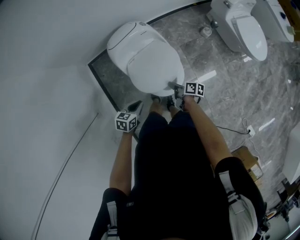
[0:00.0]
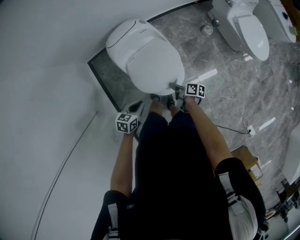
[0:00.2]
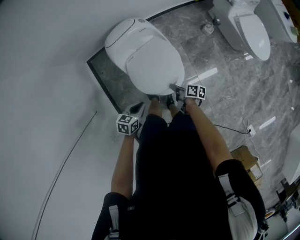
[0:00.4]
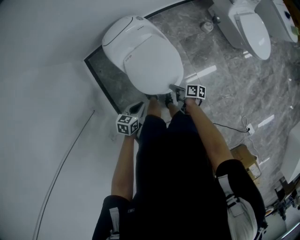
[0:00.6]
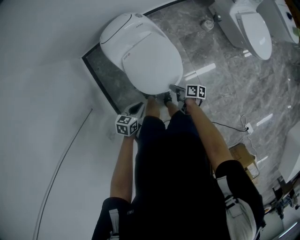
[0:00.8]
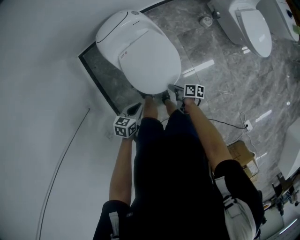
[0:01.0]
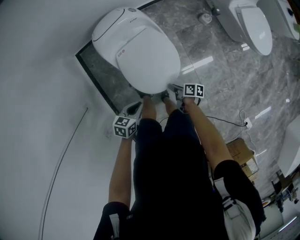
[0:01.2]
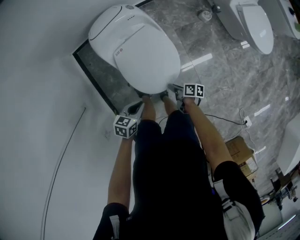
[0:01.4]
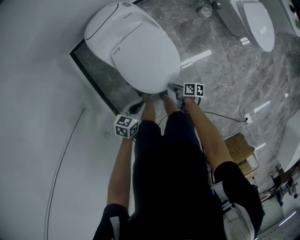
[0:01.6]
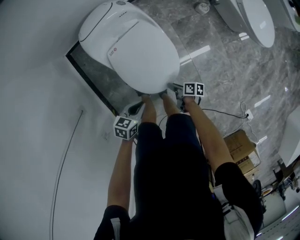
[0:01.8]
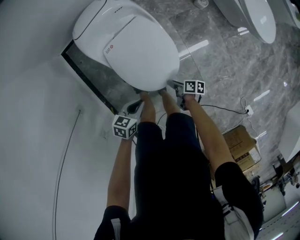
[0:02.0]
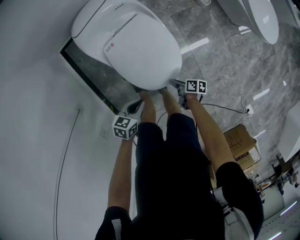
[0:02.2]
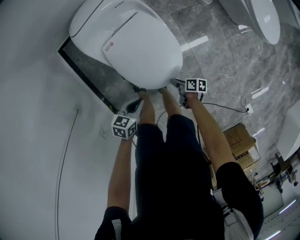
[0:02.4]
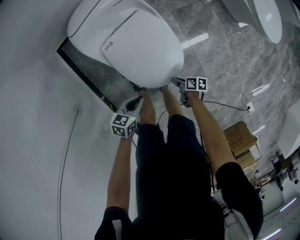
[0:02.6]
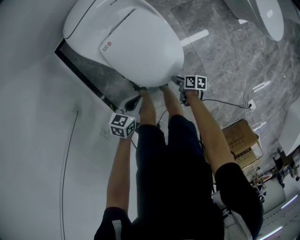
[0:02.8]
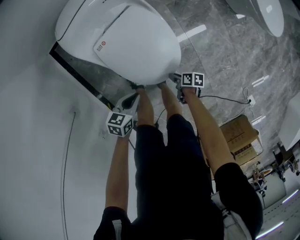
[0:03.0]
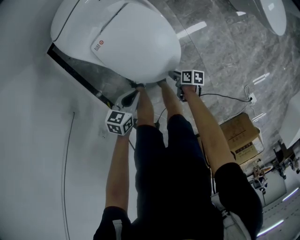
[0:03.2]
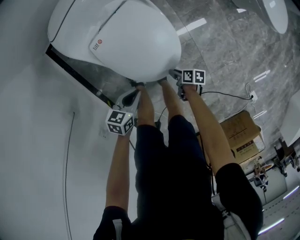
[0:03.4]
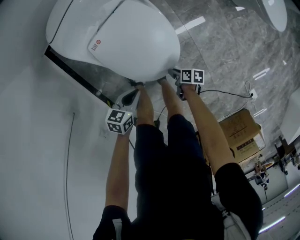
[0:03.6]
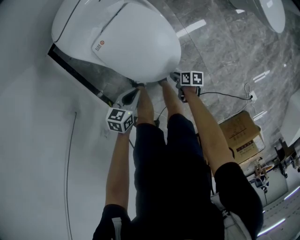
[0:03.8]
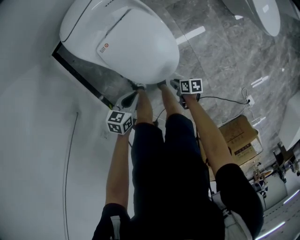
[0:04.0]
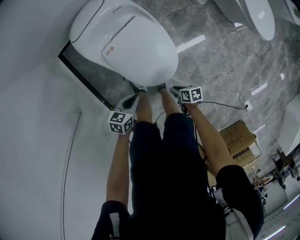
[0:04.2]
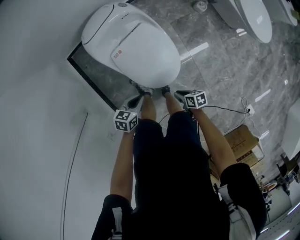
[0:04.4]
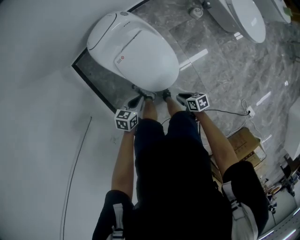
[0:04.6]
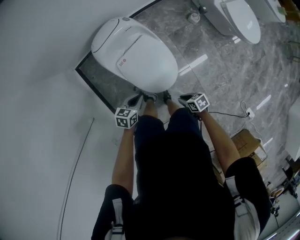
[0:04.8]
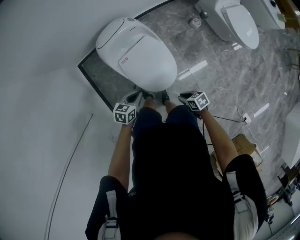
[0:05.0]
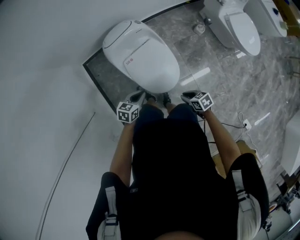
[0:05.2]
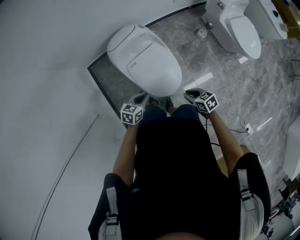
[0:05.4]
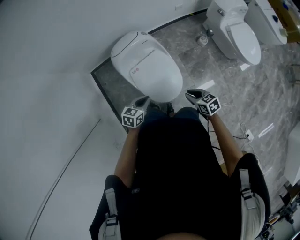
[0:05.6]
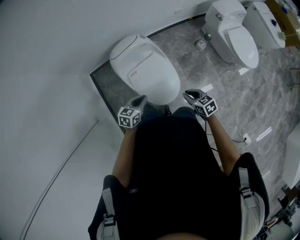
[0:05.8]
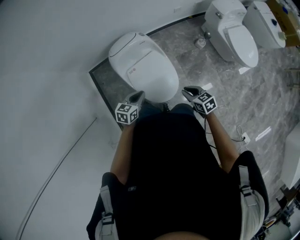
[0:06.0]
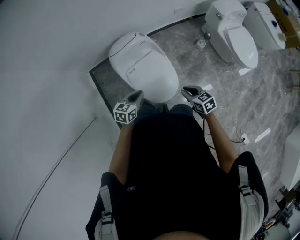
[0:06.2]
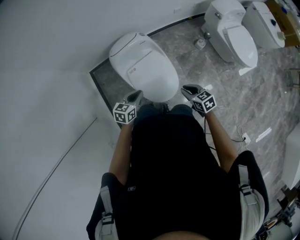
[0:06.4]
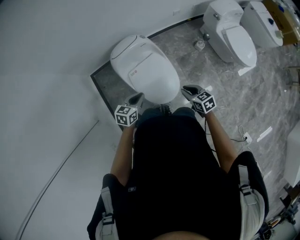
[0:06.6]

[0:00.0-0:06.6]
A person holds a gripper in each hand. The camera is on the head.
0:00.0 to 0:01.6: The left gripper heads downward, covering approximately 5 cm.
0:01.6 to 0:03.2: The left gripper shifts approximately 15 cm downward.
0:03.2 to 0:05.0: The left gripper moves upward, about 20 cm.
0:05.0 to 0:06.6: The left gripper is displaced upward by some 10 cm.

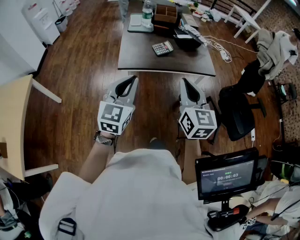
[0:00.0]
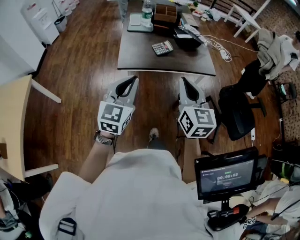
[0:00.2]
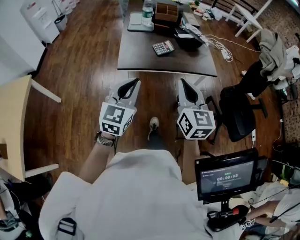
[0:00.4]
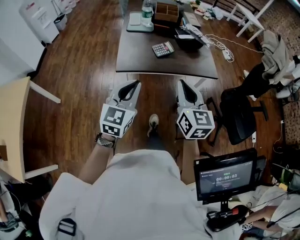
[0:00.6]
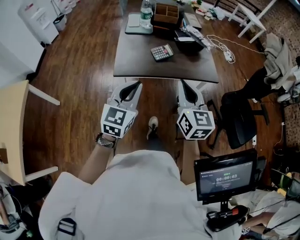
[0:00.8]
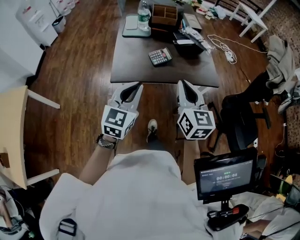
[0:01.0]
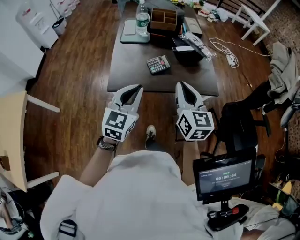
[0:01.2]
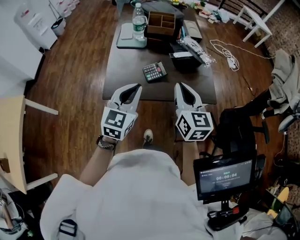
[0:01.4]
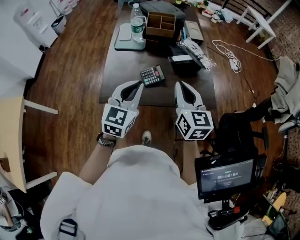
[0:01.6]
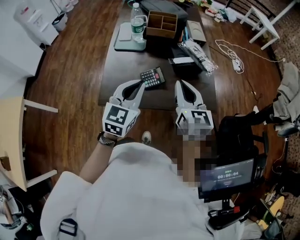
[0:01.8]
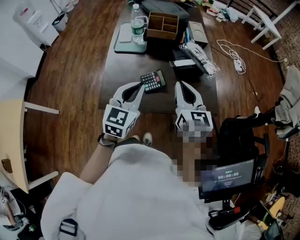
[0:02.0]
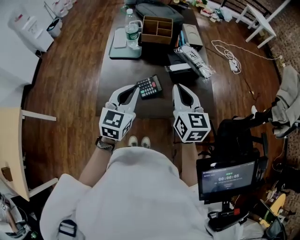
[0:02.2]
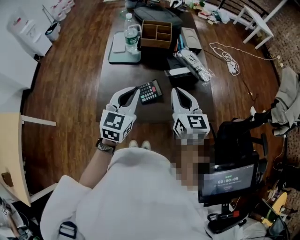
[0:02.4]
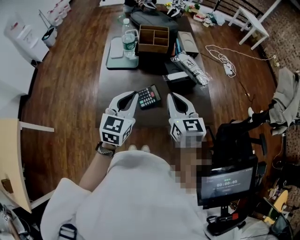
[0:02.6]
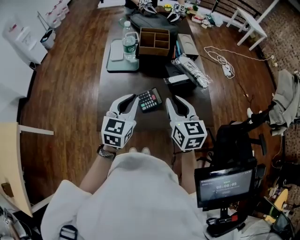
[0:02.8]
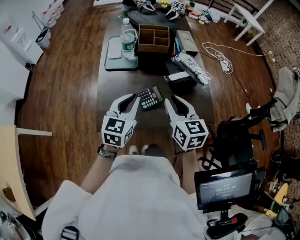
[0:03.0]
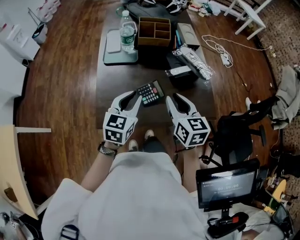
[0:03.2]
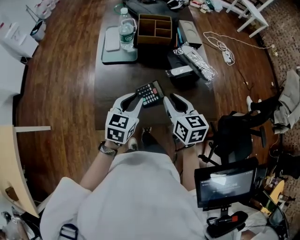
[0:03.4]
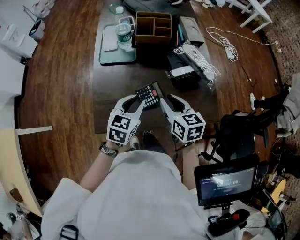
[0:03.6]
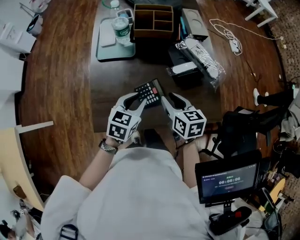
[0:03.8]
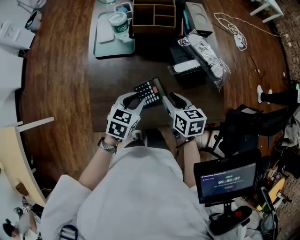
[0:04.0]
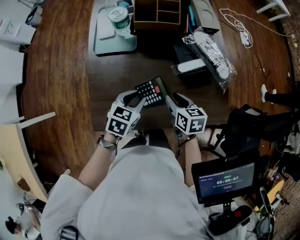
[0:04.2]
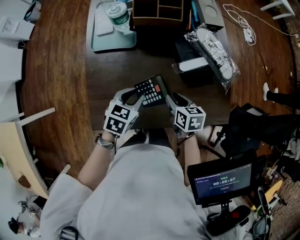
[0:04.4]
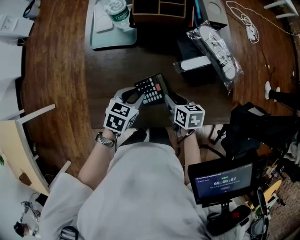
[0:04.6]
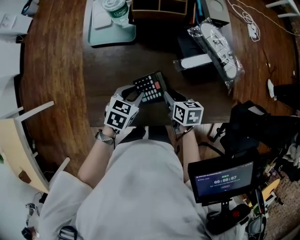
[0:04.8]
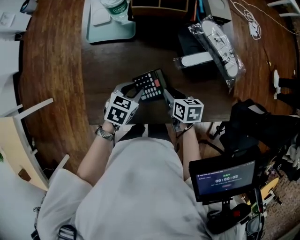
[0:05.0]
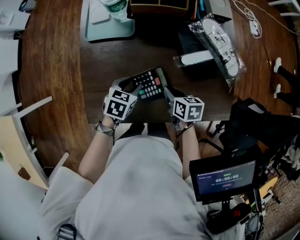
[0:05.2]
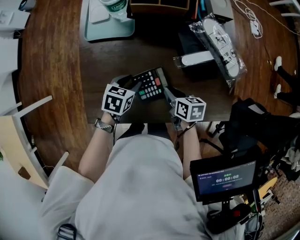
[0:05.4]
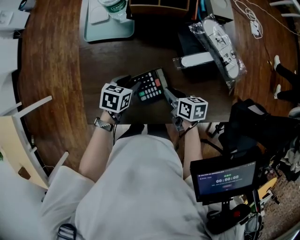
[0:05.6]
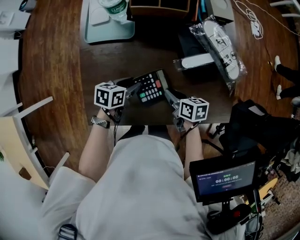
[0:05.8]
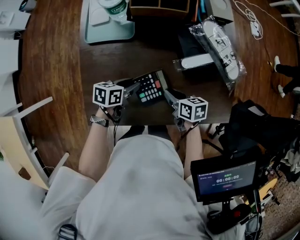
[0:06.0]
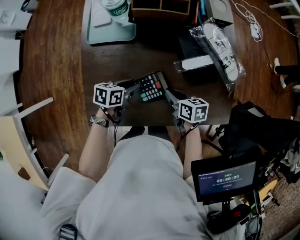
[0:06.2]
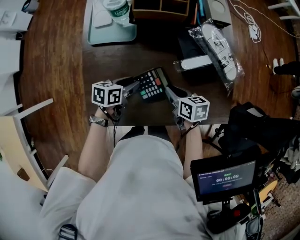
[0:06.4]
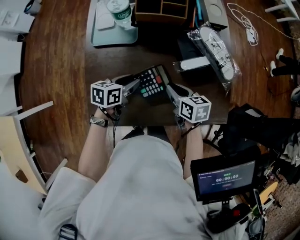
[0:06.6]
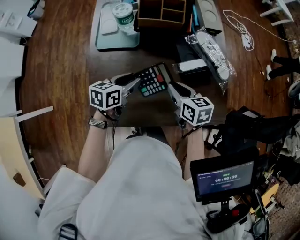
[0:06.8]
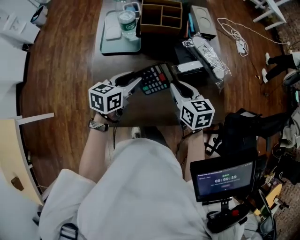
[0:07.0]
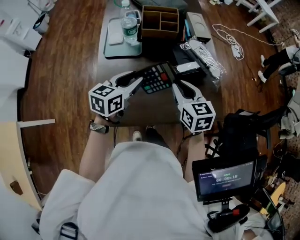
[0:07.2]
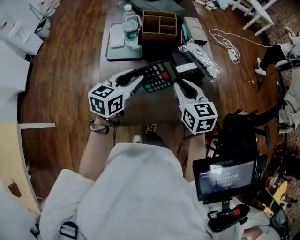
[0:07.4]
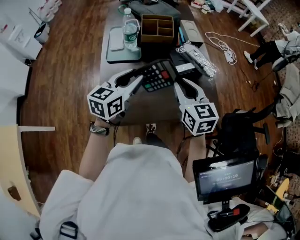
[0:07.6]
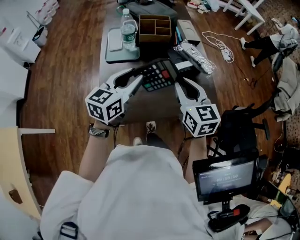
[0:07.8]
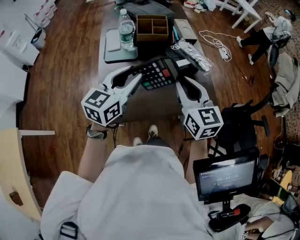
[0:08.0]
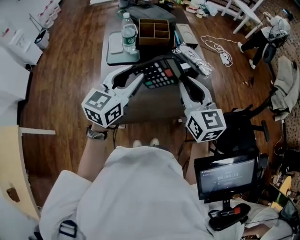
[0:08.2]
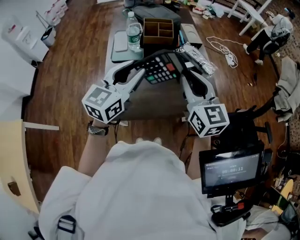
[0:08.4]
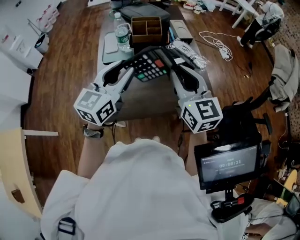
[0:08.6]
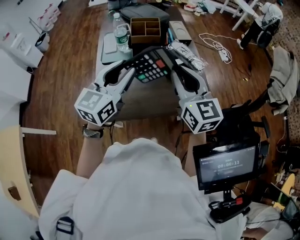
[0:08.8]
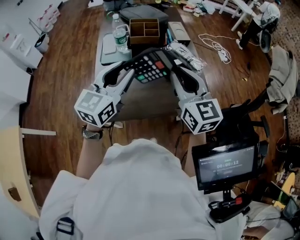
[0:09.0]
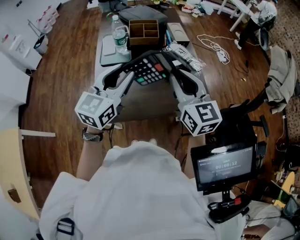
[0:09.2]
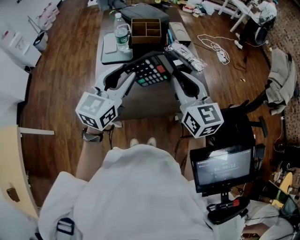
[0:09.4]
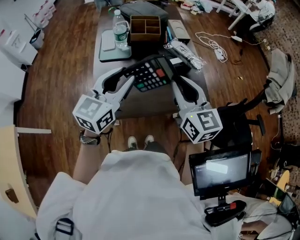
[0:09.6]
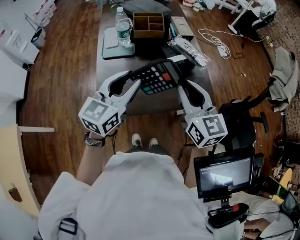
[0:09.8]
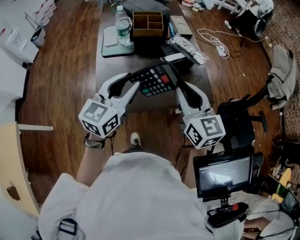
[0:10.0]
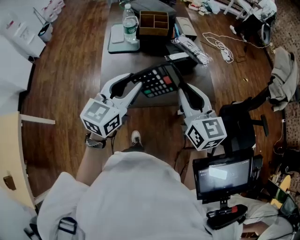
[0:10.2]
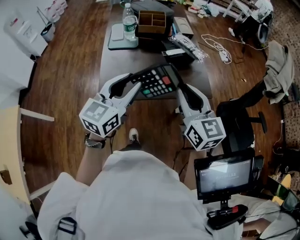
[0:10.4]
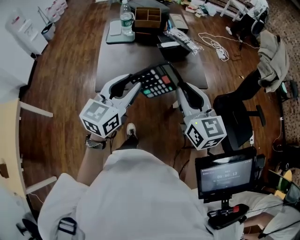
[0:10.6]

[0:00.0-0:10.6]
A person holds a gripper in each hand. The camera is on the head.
0:00.0 to 0:01.6: Both grippers travel together forward, roughly 30 cm.
0:01.6 to 0:03.0: Both grippers travel together forward, about 10 cm.
0:03.0 to 0:04.6: Both grippers move downward, some 25 cm. The left gripper points its fingers roughly 30 degrees further downward. The right gripper swivels about 40 degrees.
0:04.6 to 0:06.0: The left gripper shifts approximately 5 cm downward, and rotates some 30 degrees.
0:06.0 to 0:07.6: The grippers both shift upward by roughly 30 cm. The right gripper rotates approximately 50 degrees. Meanwhile the left gripper rotates roughly 50 degrees.
0:07.6 to 0:09.0: The right gripper moves upward, some 10 cm, while the left gripper goes approximately 10 cm upward and backward, and turns by about 20 degrees.
0:09.0 to 0:10.6: The two grippers go roughly 20 cm backward.

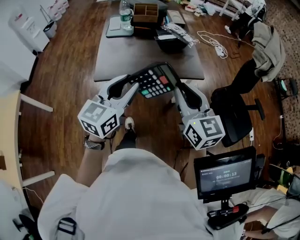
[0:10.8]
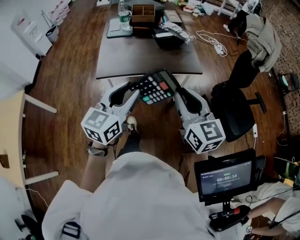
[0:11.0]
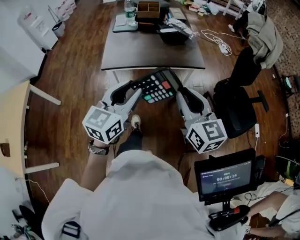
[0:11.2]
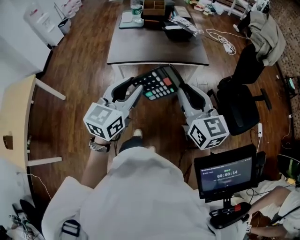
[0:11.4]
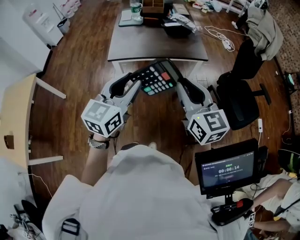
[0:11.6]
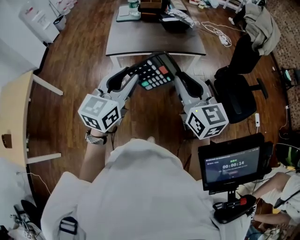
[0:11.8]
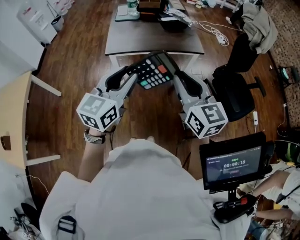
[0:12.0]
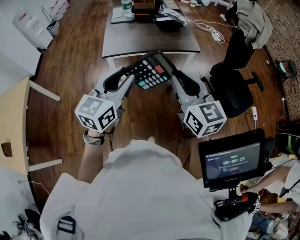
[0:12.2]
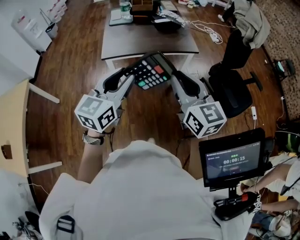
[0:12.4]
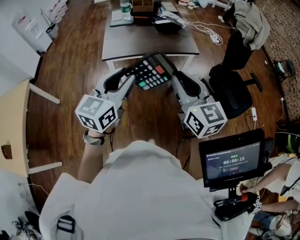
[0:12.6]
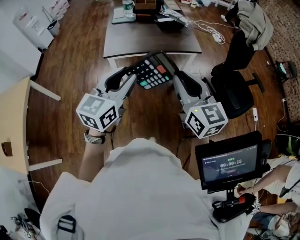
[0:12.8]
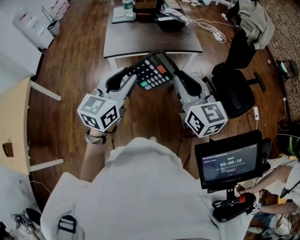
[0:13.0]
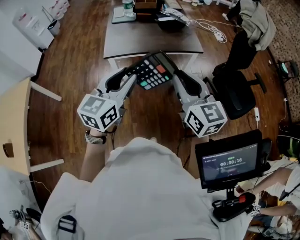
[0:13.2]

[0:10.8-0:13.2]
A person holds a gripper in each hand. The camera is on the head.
0:10.8 to 0:12.0: The two grippers go approximately 20 cm backward.
0:12.0 to 0:13.2: The grippers make only small movements.

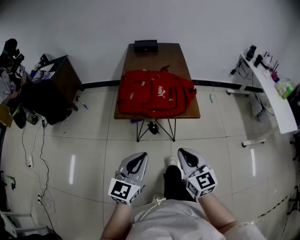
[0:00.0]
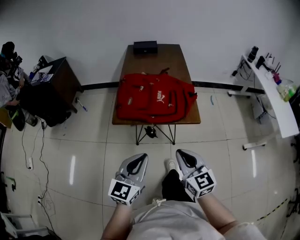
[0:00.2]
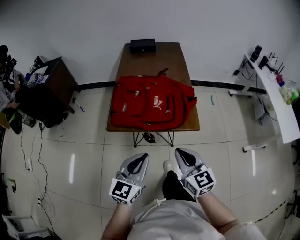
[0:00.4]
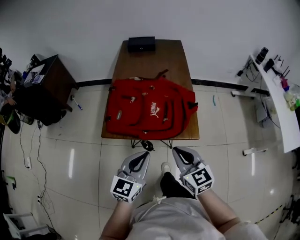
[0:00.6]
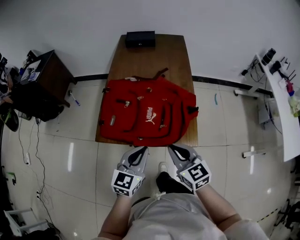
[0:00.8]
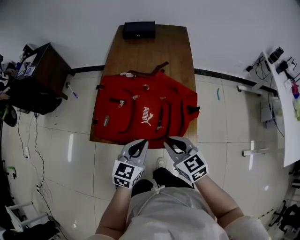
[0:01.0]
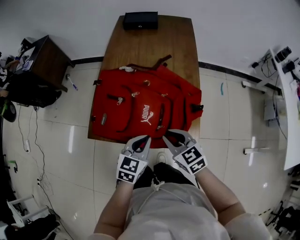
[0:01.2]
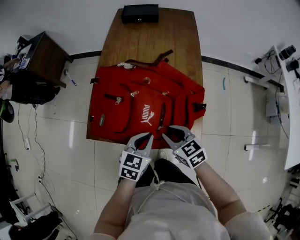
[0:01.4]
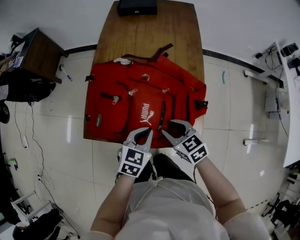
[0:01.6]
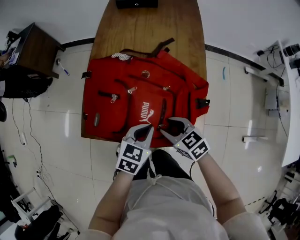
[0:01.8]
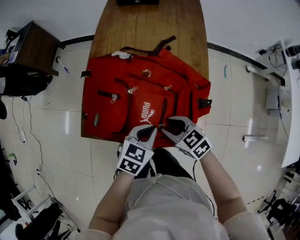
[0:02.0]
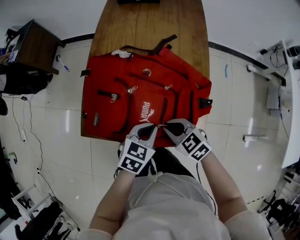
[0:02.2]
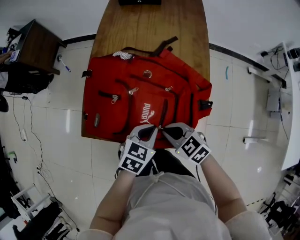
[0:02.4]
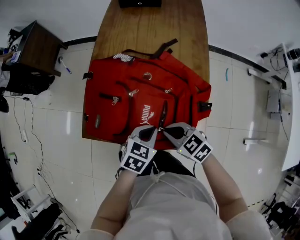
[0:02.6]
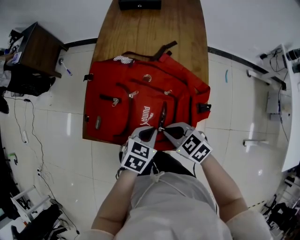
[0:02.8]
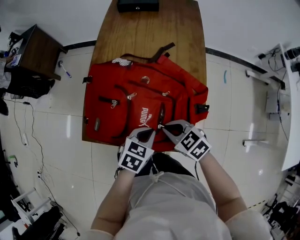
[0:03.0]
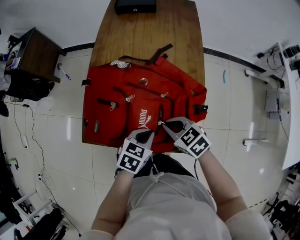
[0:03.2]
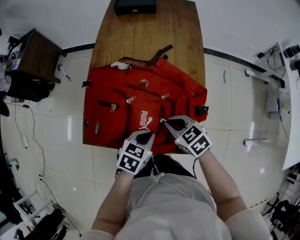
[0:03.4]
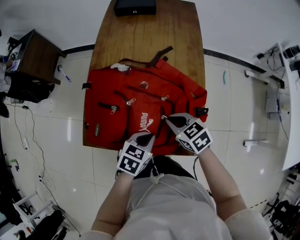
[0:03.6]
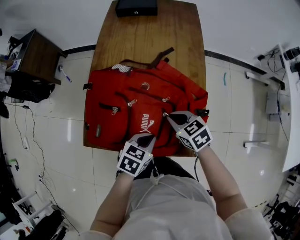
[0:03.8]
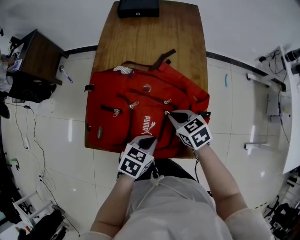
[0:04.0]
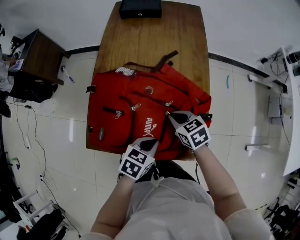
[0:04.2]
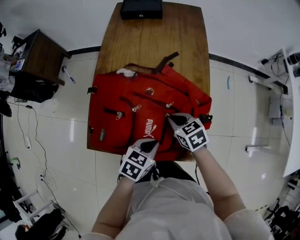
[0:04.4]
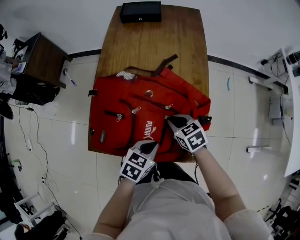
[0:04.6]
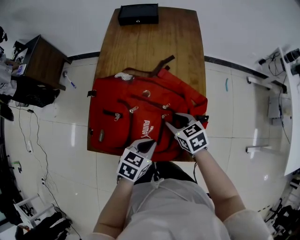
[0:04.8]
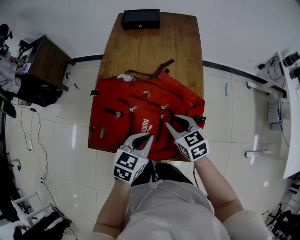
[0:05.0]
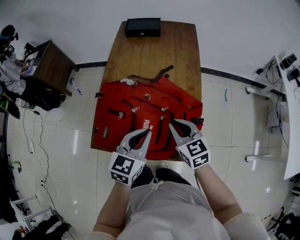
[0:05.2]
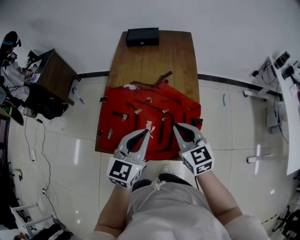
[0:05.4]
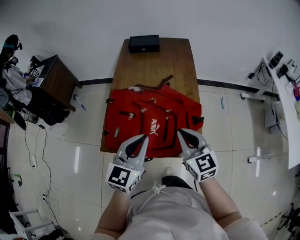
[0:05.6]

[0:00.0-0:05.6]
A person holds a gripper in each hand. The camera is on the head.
0:00.0 to 0:01.4: Both grippers travel together forward and downward, some 40 cm. The right gripper swivels approximately 40 degrees, and opens, while the left gripper turns by approximately 30 degrees.
0:01.4 to 0:02.8: The left gripper shifts by approximately 5 cm, while the right gripper closes its fingers.
0:02.8 to 0:04.2: The right gripper travels forward by approximately 10 cm, and swivels about 20 degrees.
0:04.2 to 0:05.6: The right gripper is displaced upward and backward by approximately 25 cm, tips its fingers upward by about 30 degrees, and opens and closes again; the left gripper is displaced upward by some 25 cm, and angles its fingers upward, by some 40 degrees.
